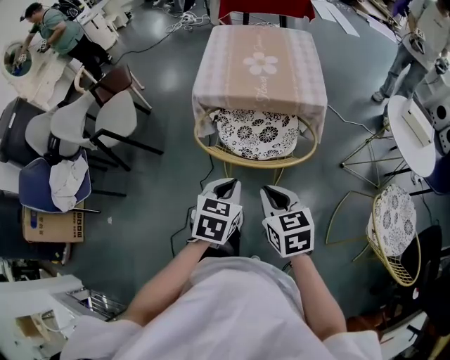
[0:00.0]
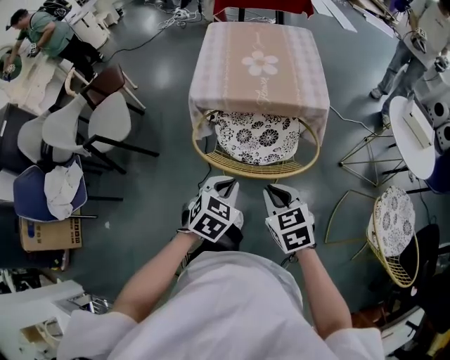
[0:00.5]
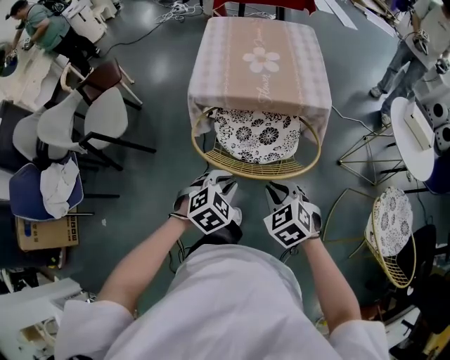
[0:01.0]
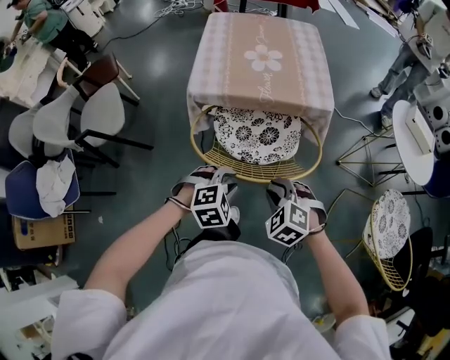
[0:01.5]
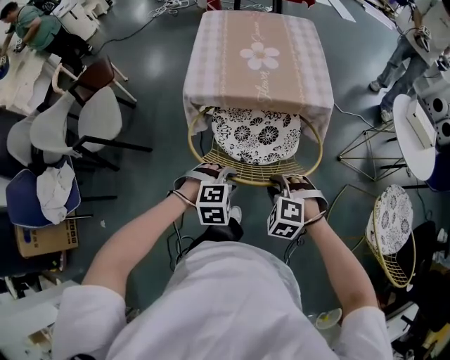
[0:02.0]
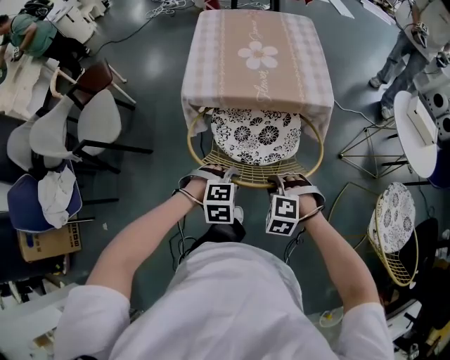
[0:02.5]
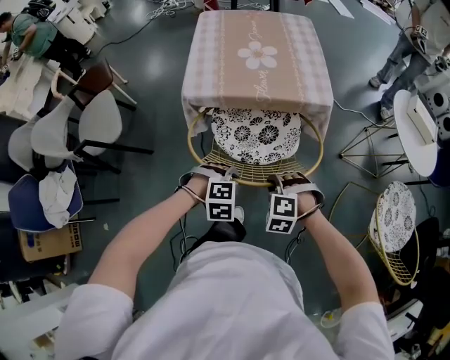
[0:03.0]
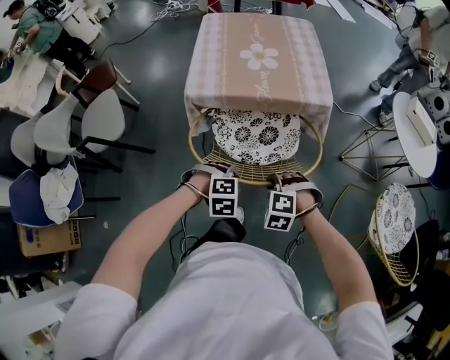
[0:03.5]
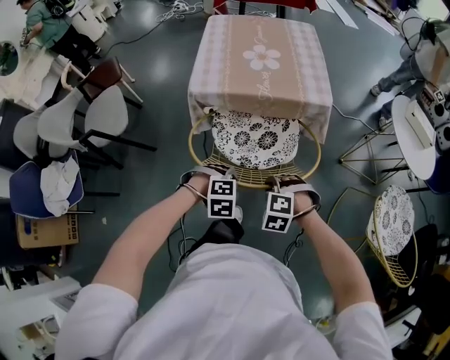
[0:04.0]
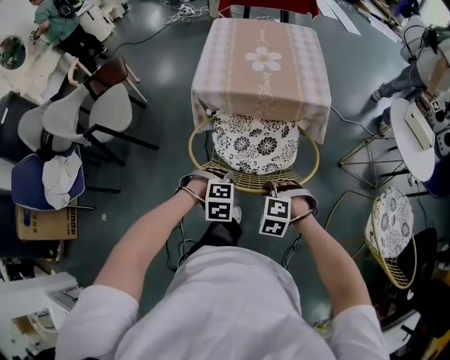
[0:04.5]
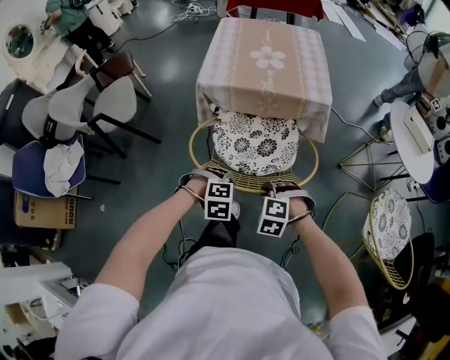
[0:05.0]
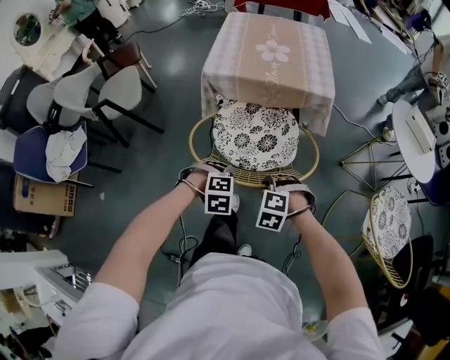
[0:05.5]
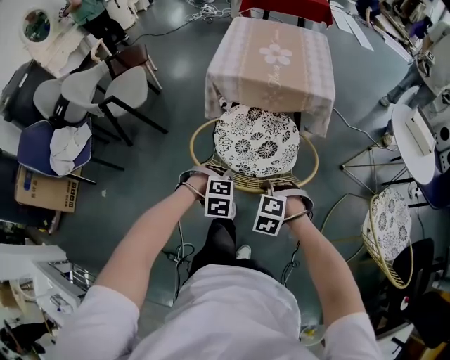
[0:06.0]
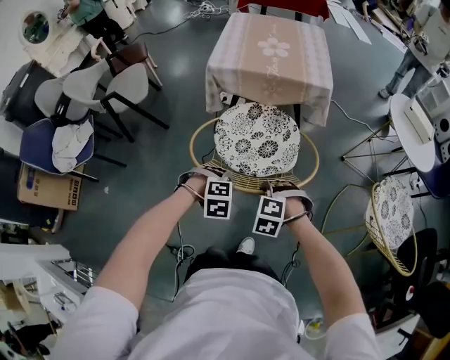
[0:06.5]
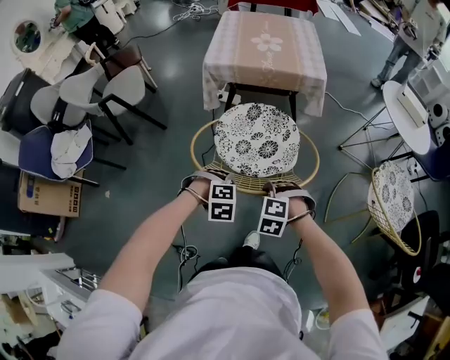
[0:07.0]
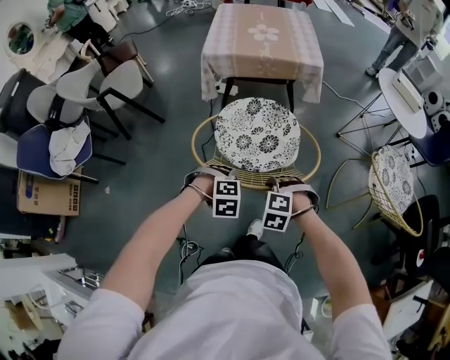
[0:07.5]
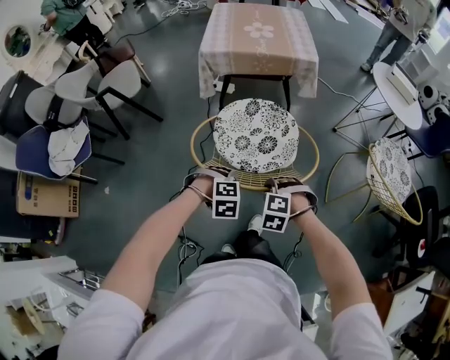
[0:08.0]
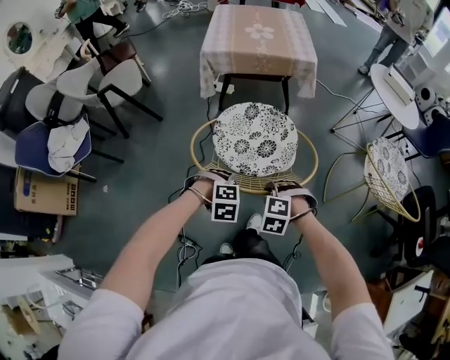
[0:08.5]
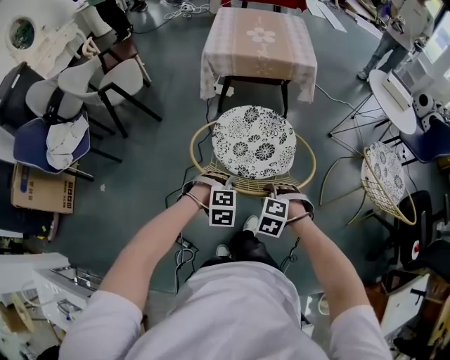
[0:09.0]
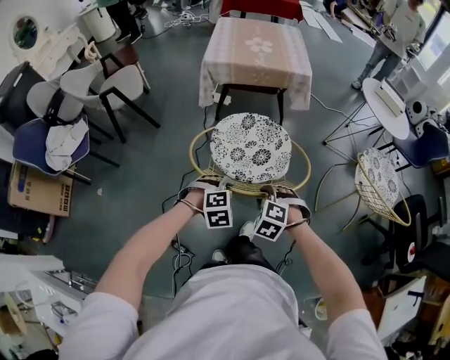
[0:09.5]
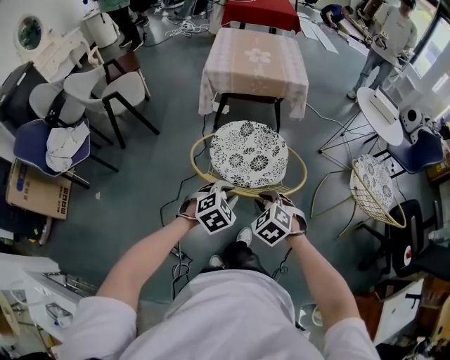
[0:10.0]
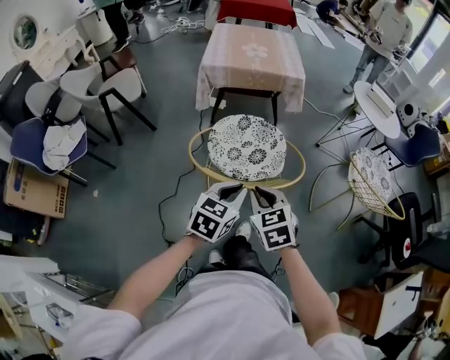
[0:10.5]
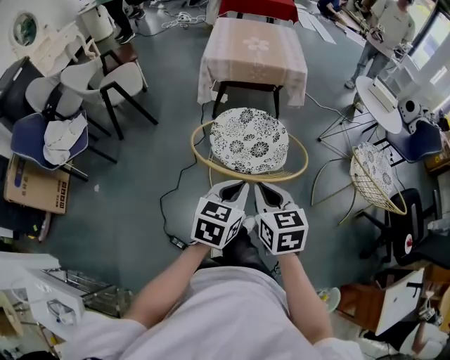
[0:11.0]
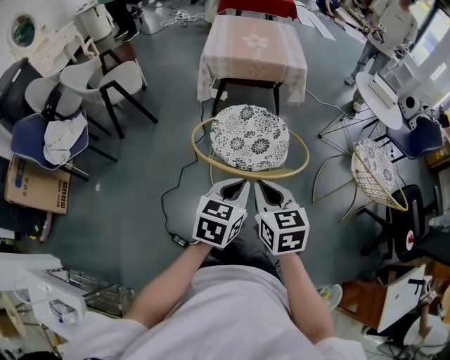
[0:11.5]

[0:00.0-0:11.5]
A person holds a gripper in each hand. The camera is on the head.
0:00.0 to 0:02.0: Both grippers move downward and forward, about 15 cm. The right gripper rotates around the line of its fingers by approximately 60 degrees, counterclockwise from behind, and opens. The left gripper rolls clockwise, seen from behind, by approximately 70 degrees, and opens.
0:02.0 to 0:04.0: The left gripper closes up.
0:04.0 to 0:06.0: The grippers both shift backward by some 15 cm.
0:06.0 to 0:07.5: The grippers both shift backward by approximately 15 cm.
0:07.5 to 0:09.5: Both grippers move backward, about 10 cm.
0:09.5 to 0:11.5: Both grippers move upward, approximately 15 cm. The right gripper rotates around the line of its fingers by roughly 60 degrees, clockwise from behind, and closes. The left gripper rolls counterclockwise, seen from behind, by approximately 60 degrees.

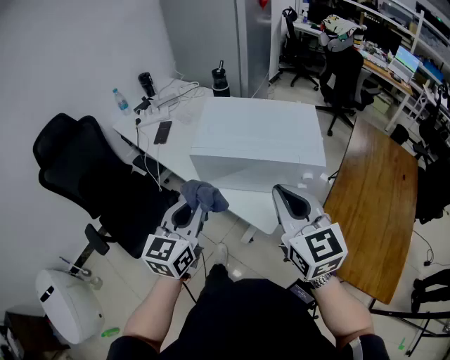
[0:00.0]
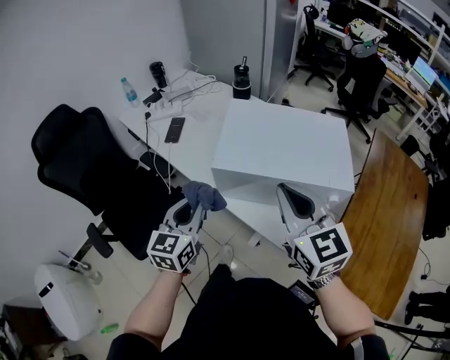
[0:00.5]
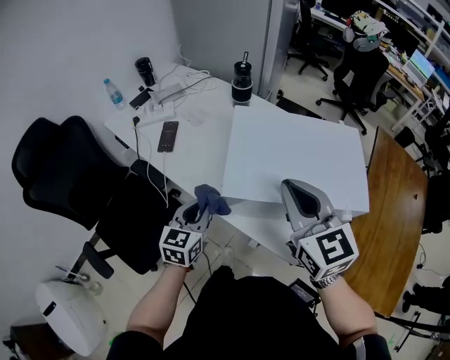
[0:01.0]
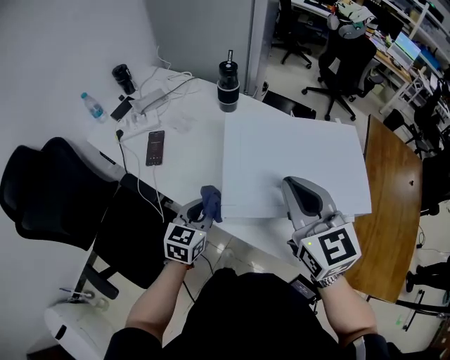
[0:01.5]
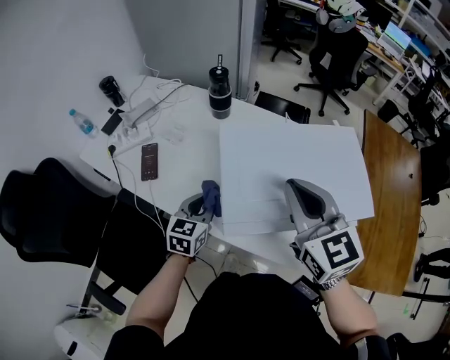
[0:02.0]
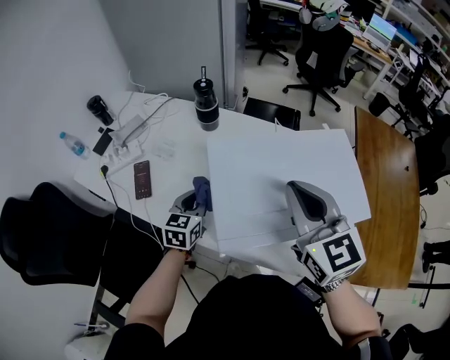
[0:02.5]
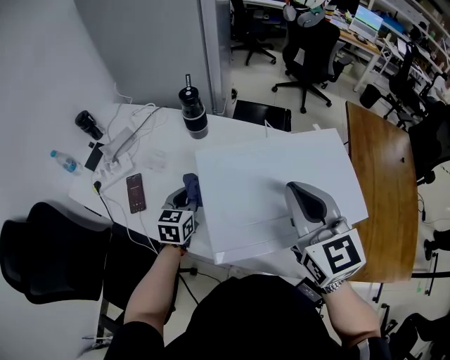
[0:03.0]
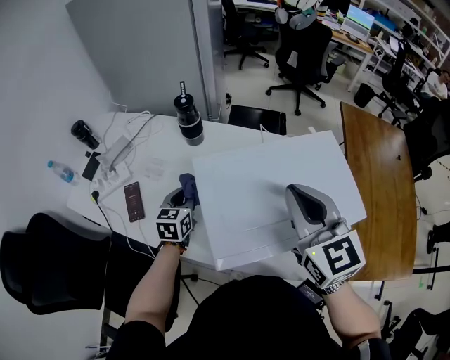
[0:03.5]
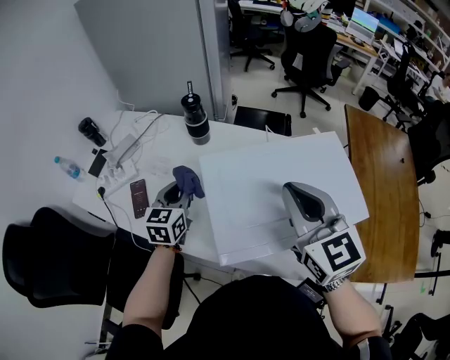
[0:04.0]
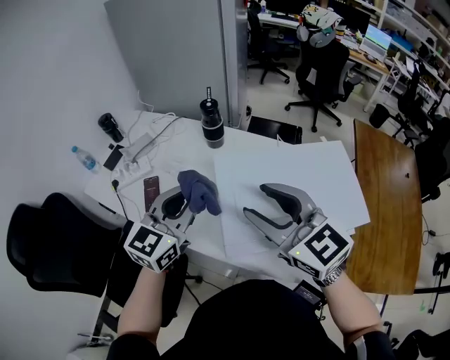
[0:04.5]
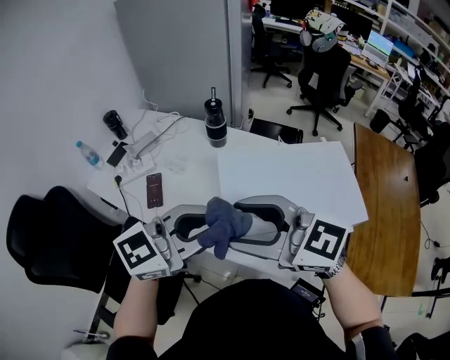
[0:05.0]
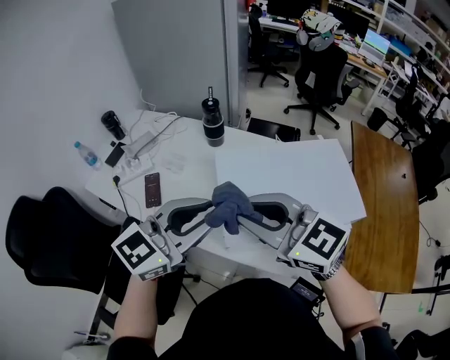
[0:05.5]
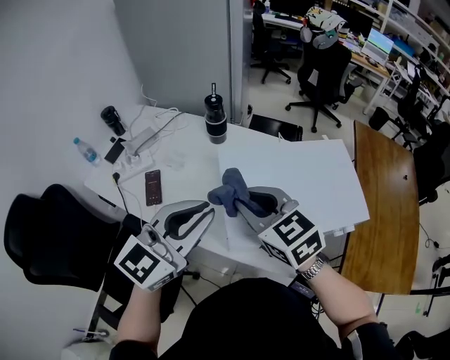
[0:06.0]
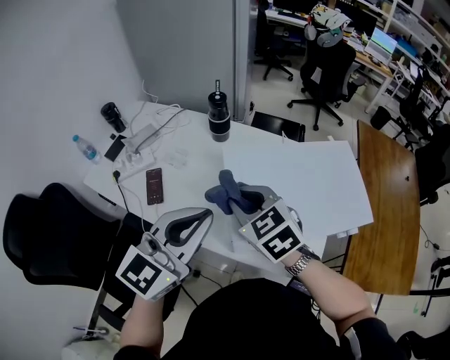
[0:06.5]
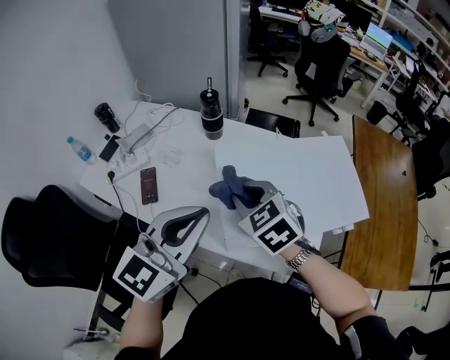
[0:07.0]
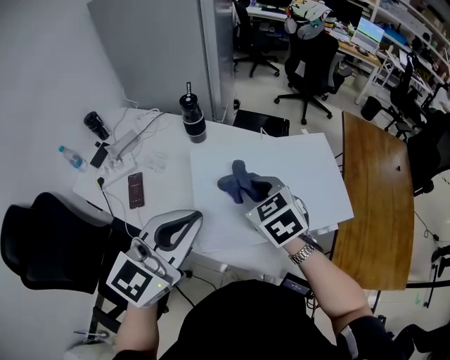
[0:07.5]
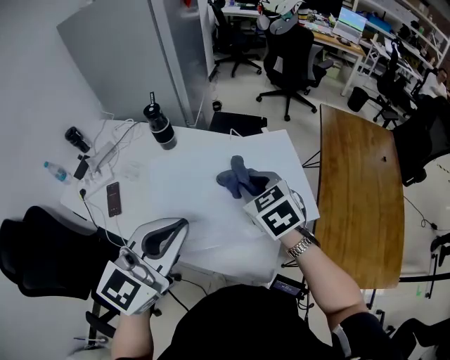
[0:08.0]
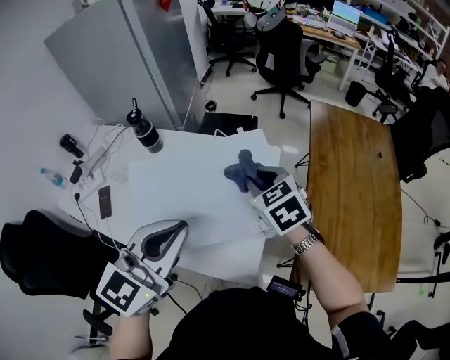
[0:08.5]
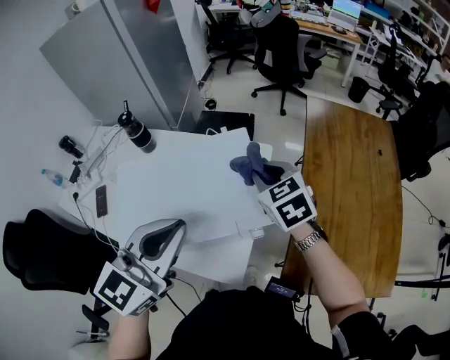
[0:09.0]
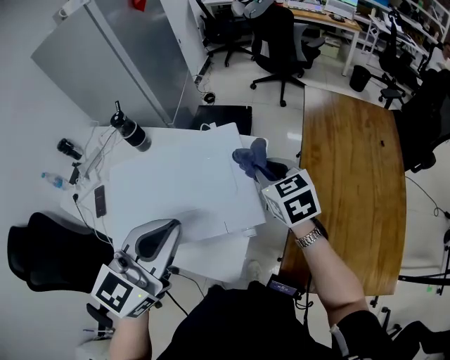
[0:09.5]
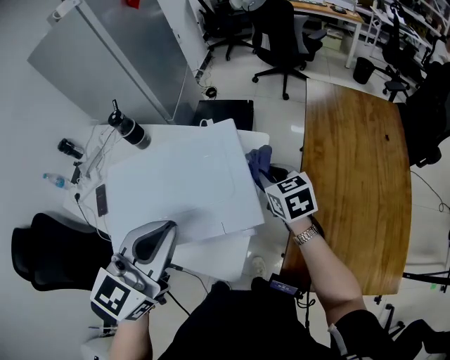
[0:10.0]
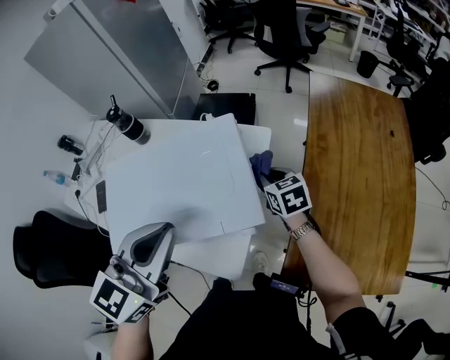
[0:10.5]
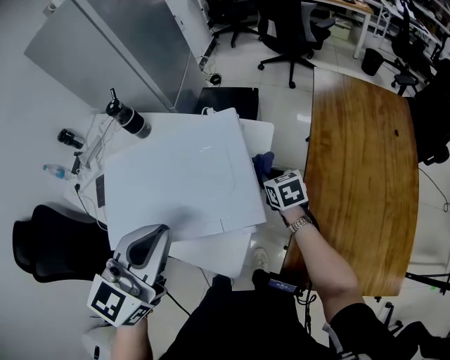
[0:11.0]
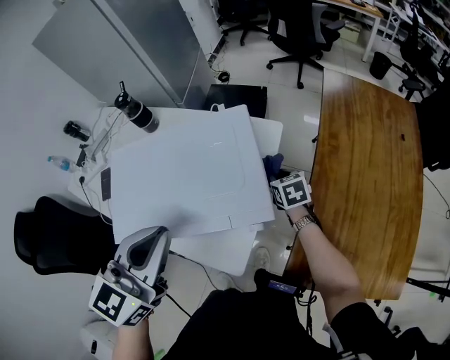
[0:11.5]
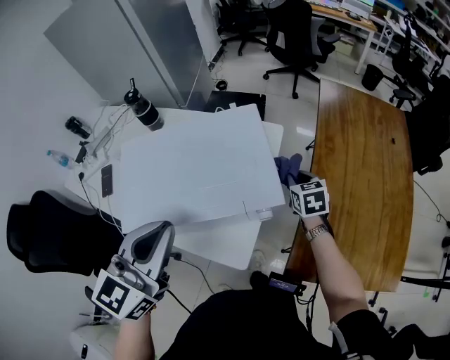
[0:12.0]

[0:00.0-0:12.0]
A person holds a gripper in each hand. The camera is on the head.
0:00.0 to 0:02.0: The right gripper heads forward and to the left, covering roughly 30 cm. The left gripper heads forward and downward, covering about 35 cm, and swivels roughly 30 degrees.
0:02.0 to 0:04.0: The left gripper heads forward and upward, covering approximately 15 cm.
0:04.0 to 0:06.0: The right gripper moves about 15 cm, turns by approximately 30 degrees, and opens, then closes once more; the left gripper travels upward by approximately 20 cm, and swivels some 30 degrees.
0:06.0 to 0:08.0: The grippers both shift to the right by roughly 20 cm.
0:08.0 to 0:10.0: The right gripper moves to the right and downward, about 25 cm, and rotates some 20 degrees, while the left gripper travels to the right by approximately 15 cm.
0:10.0 to 0:12.0: The left gripper goes approximately 10 cm to the left and backward, while the right gripper goes approximately 10 cm downward.

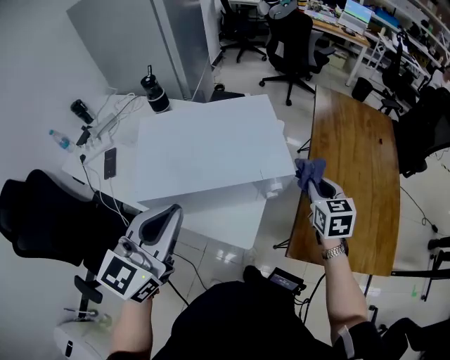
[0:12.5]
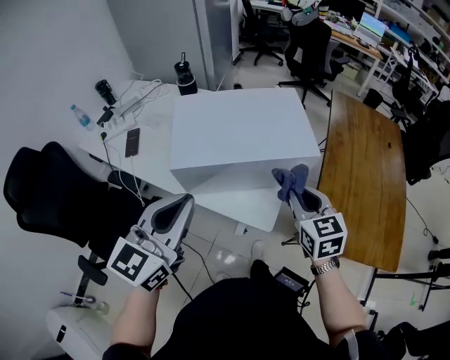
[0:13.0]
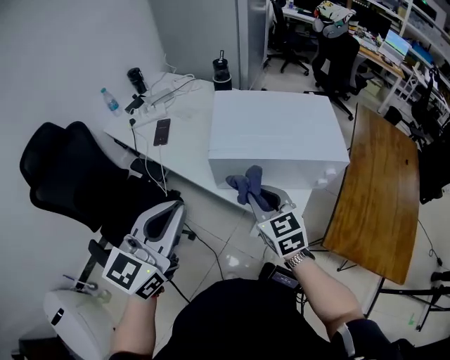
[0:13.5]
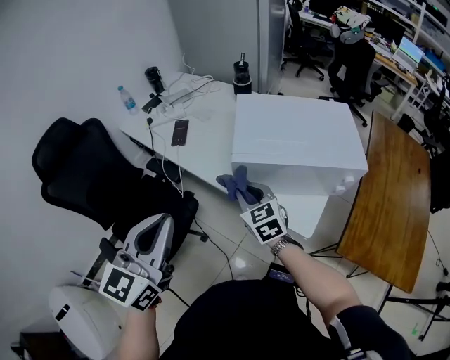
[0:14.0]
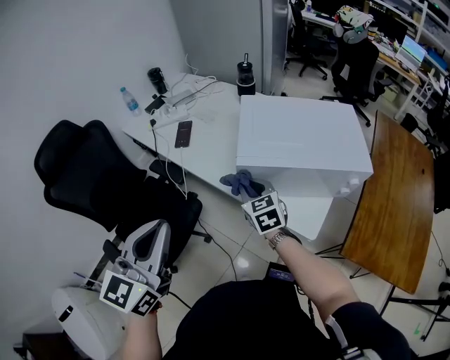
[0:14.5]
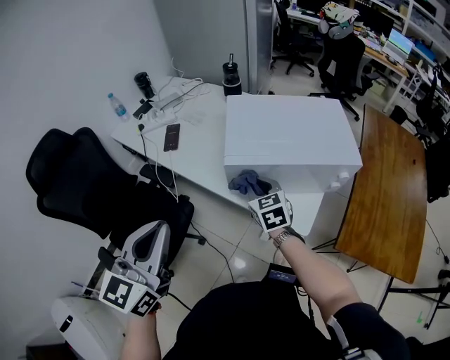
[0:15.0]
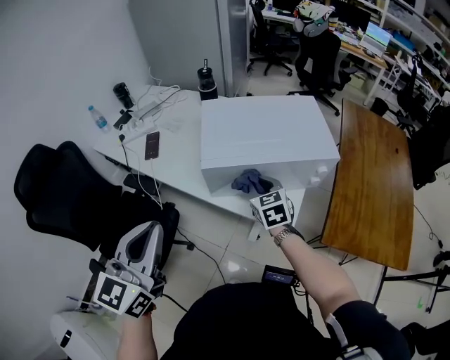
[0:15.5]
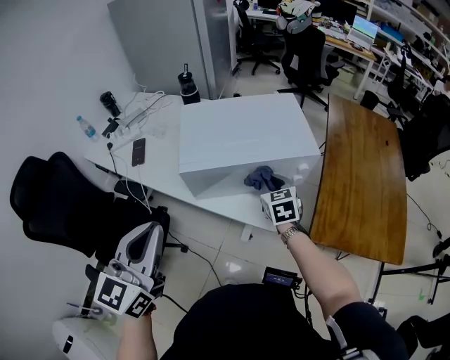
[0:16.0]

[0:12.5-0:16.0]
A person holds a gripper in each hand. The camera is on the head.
0:12.5 to 0:14.5: The right gripper shifts by about 50 cm, and changes its angle by some 40 degrees. Meanwhile the left gripper shifts by about 30 cm, and turns by about 20 degrees.
0:14.5 to 0:16.0: The right gripper is displaced to the right by some 25 cm, and rotates about 20 degrees. The left gripper goes roughly 10 cm to the right.
